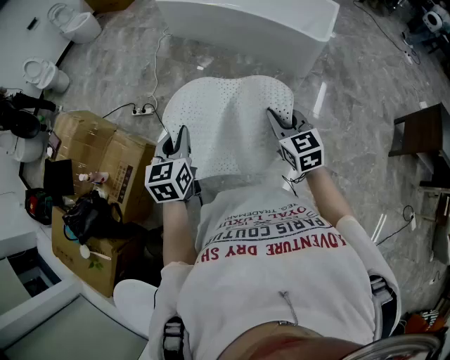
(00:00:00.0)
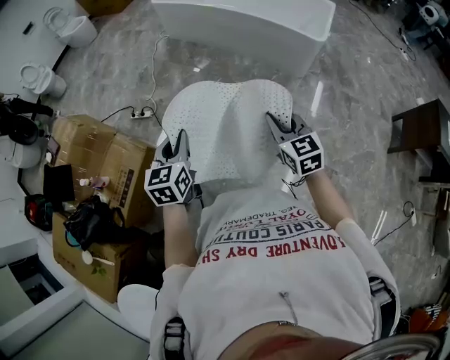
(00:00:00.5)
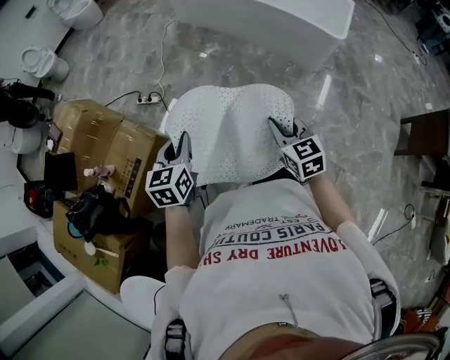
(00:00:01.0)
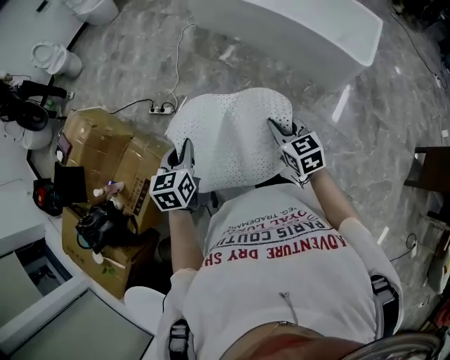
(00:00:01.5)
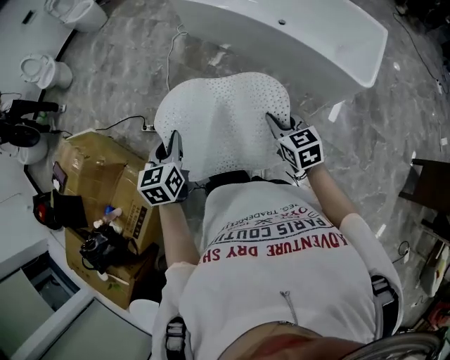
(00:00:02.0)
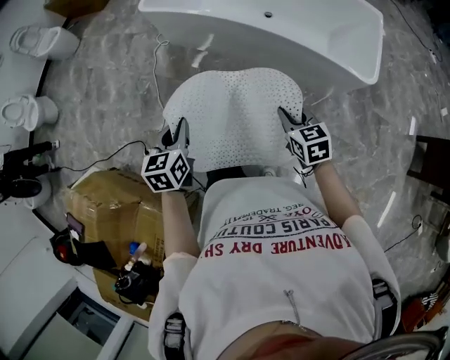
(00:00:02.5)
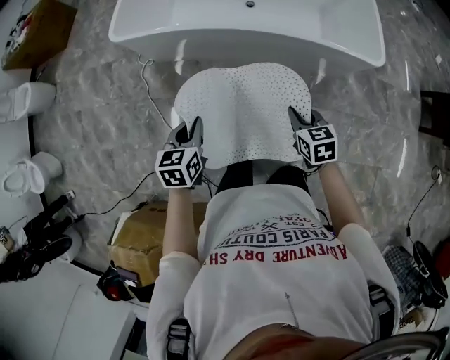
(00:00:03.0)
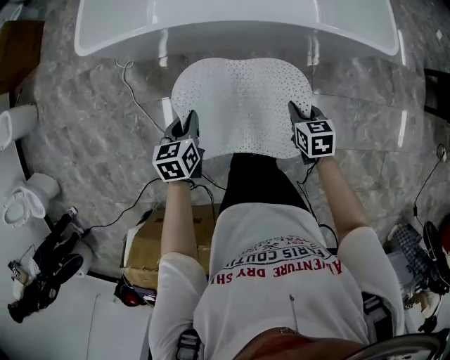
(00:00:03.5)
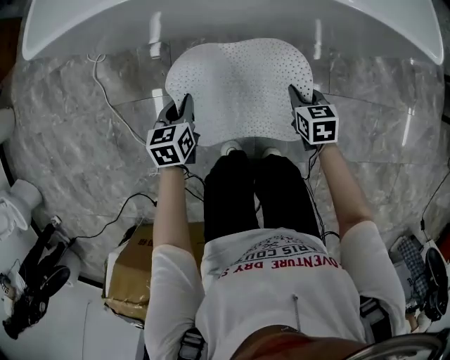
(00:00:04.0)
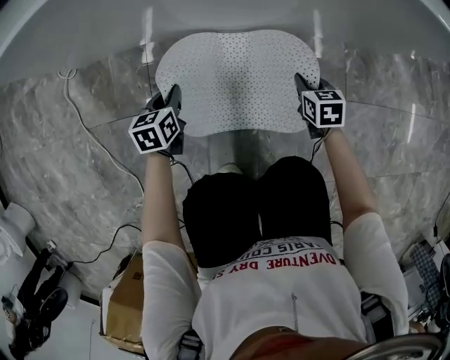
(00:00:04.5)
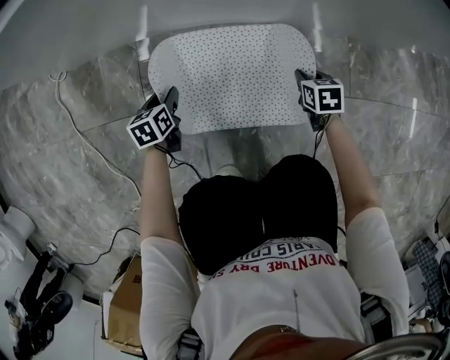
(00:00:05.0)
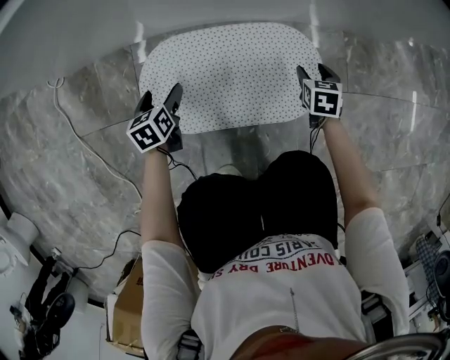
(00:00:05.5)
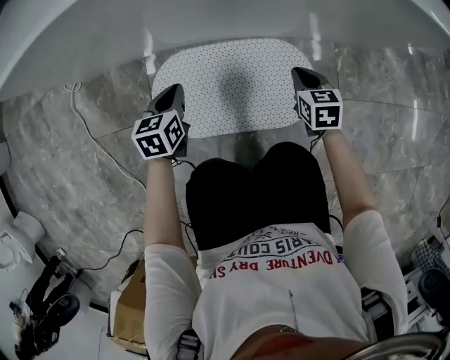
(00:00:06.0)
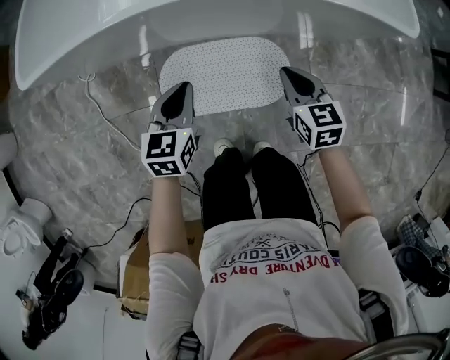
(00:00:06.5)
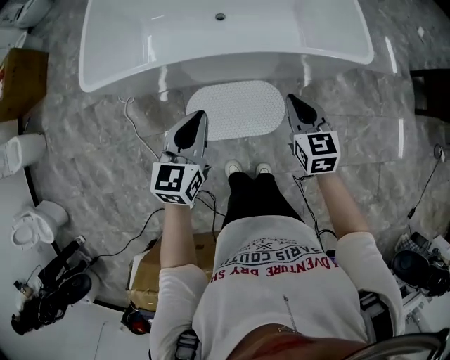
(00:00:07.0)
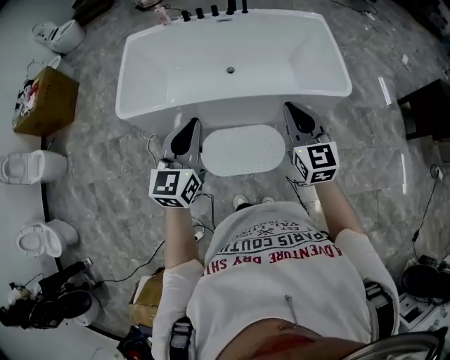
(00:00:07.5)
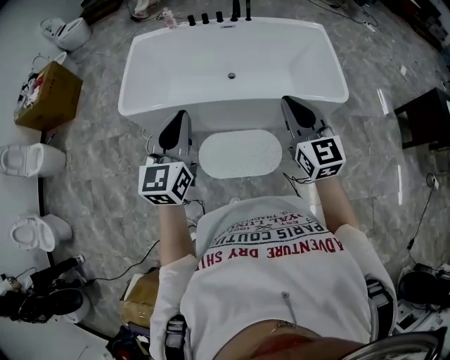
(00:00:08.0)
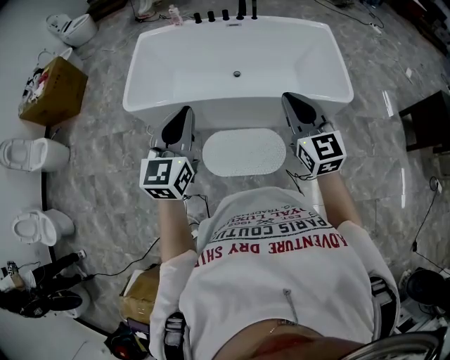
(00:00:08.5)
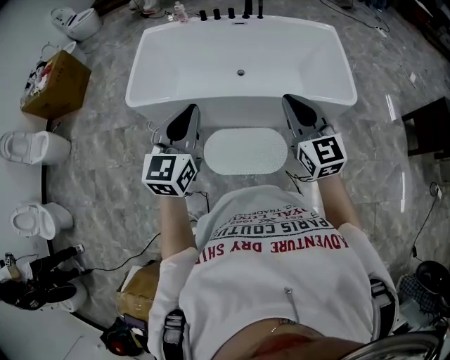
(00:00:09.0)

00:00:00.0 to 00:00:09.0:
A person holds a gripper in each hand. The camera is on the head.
00:00:00.0 to 00:00:02.0: Both grippers move forward, roughly 35 cm.
00:00:02.0 to 00:00:04.5: Both grippers travel together downward, roughly 70 cm. The right gripper changes its angle by some 50 degrees, while the left gripper swivels some 40 degrees.
00:00:04.5 to 00:00:07.0: Both grippers travel together upward, some 60 cm. The right gripper rotates some 20 degrees, and opens, then closes once more, while the left gripper changes its angle by approximately 30 degrees, and opens, then closes again.
00:00:07.0 to 00:00:09.0: The grippers both shift upward by approximately 25 cm. The right gripper rotates roughly 30 degrees.

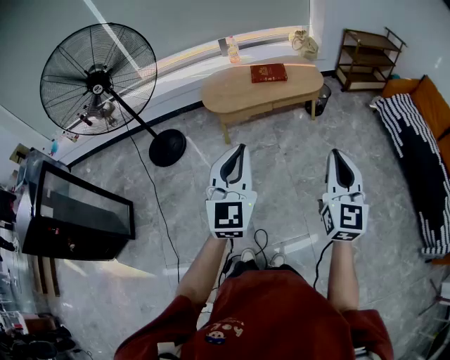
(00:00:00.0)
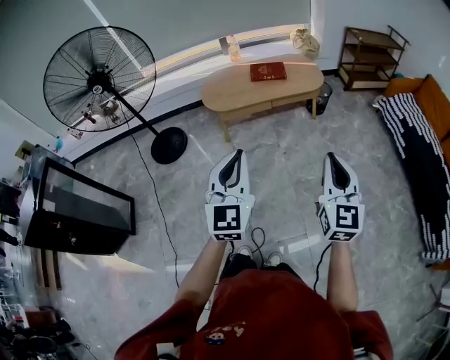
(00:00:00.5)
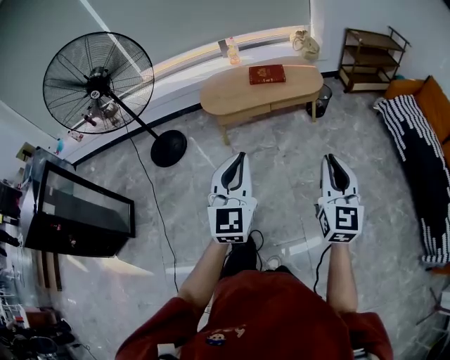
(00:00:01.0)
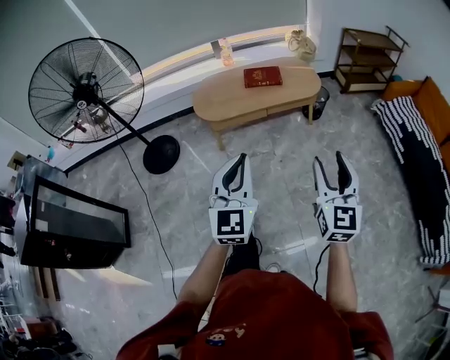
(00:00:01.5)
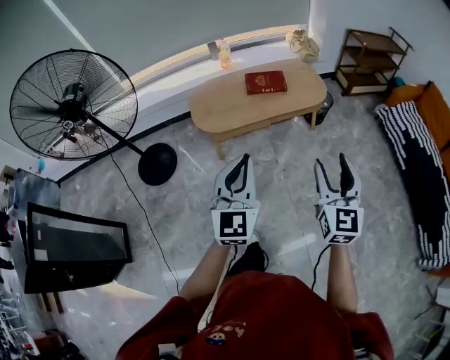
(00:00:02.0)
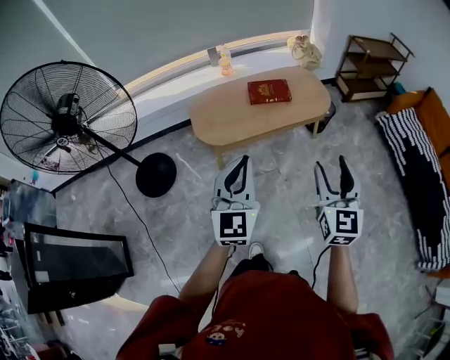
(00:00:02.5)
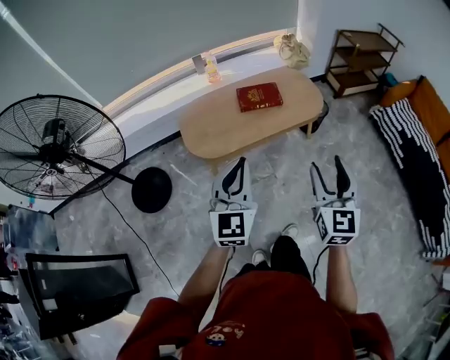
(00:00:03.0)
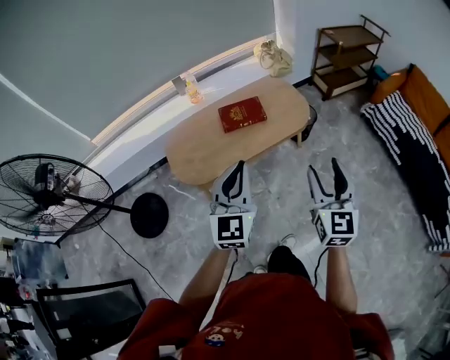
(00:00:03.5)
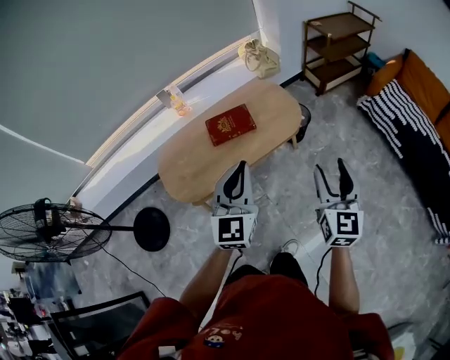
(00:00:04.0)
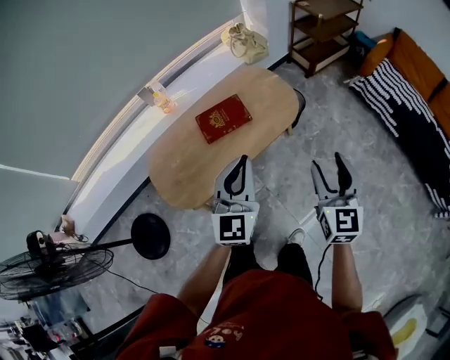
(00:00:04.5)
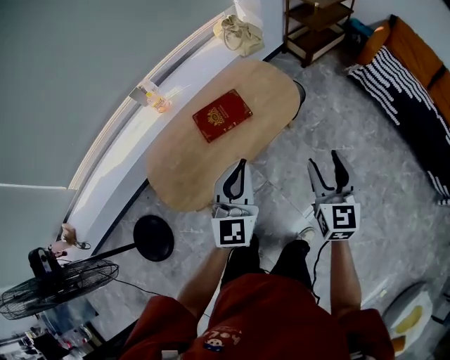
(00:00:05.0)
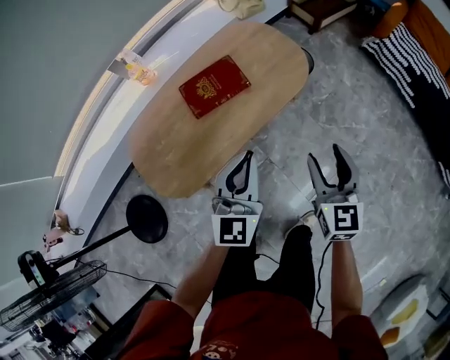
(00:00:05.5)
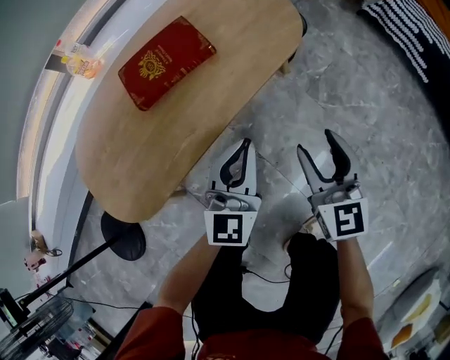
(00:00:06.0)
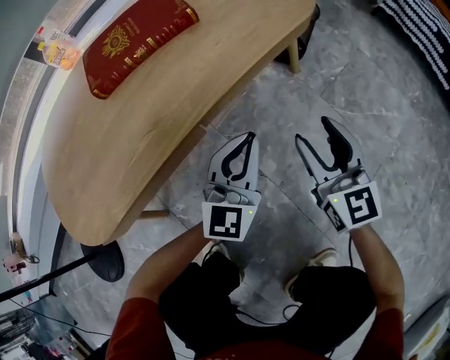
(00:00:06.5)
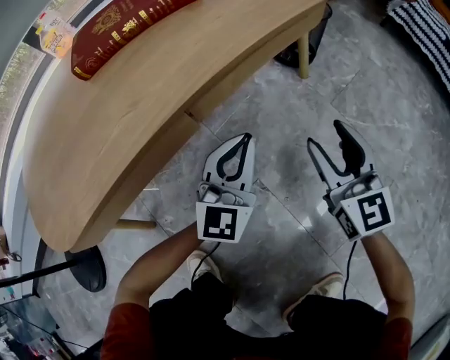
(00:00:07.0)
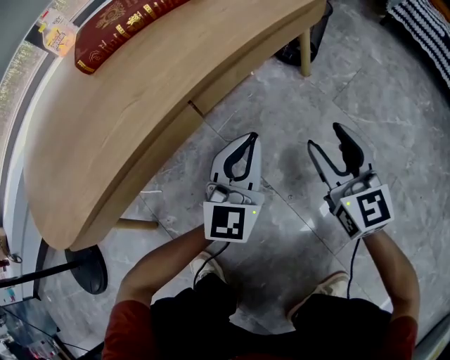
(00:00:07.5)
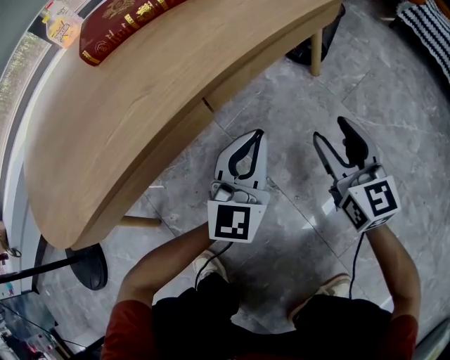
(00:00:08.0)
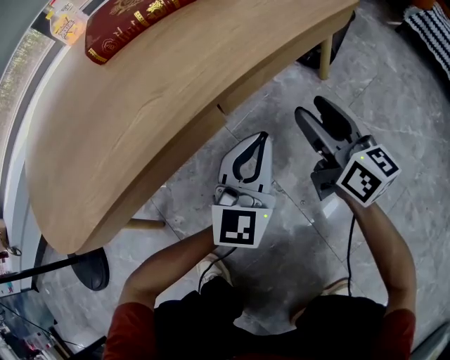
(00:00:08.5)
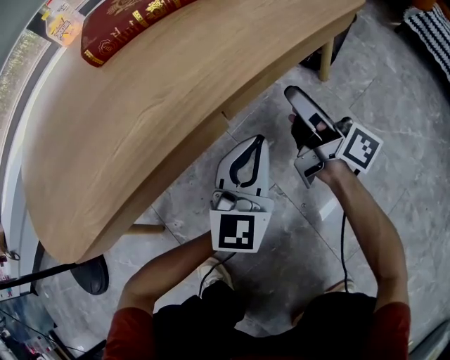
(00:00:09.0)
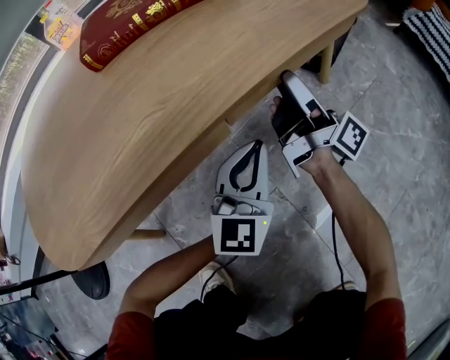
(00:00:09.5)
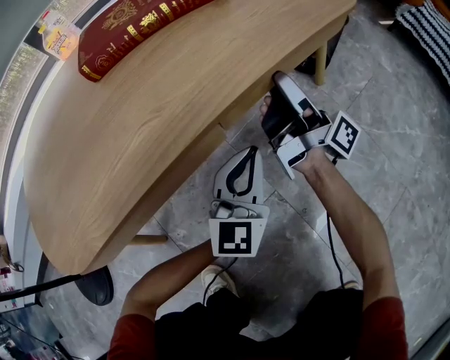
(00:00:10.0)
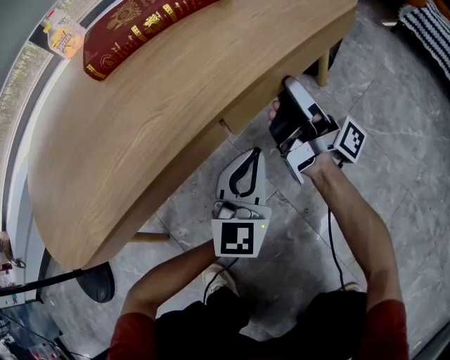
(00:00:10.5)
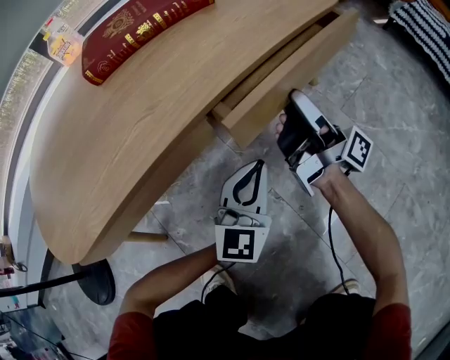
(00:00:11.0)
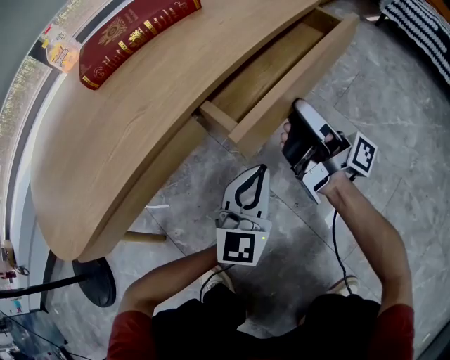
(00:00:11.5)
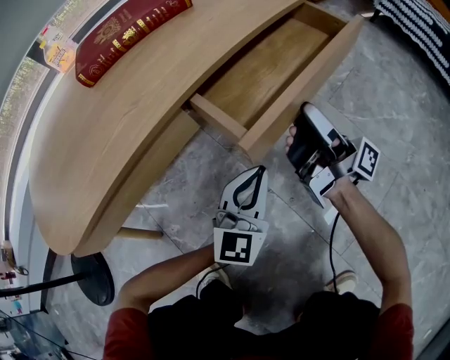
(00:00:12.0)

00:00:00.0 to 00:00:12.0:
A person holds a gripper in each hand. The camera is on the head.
00:00:00.0 to 00:00:02.0: Both grippers move forward, approximately 20 cm. The right gripper opens its fingers.
00:00:02.0 to 00:00:04.0: The two grippers go approximately 35 cm forward.
00:00:04.0 to 00:00:06.0: The two grippers go about 50 cm downward.
00:00:06.0 to 00:00:08.0: The grippers both shift downward by some 30 cm.
00:00:08.0 to 00:00:10.0: The right gripper heads forward and to the left, covering approximately 15 cm, and rolls clockwise, seen from behind, by some 70 degrees.
00:00:10.0 to 00:00:12.0: The grippers both shift backward and to the right by about 10 cm.

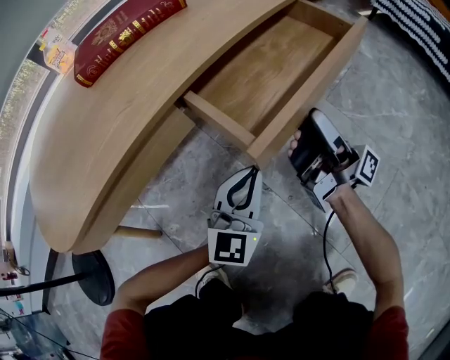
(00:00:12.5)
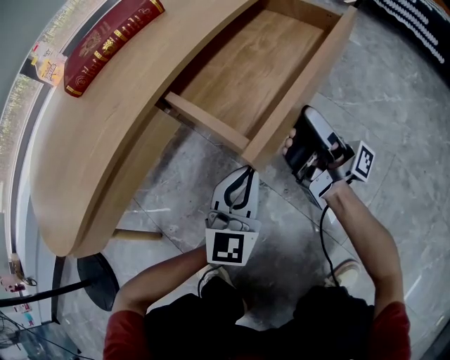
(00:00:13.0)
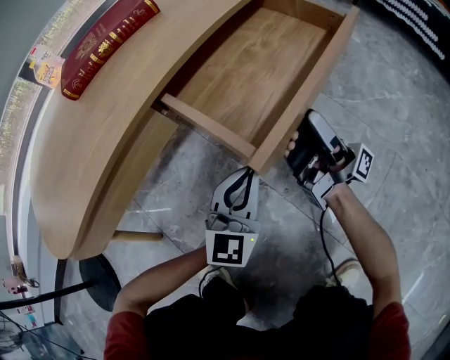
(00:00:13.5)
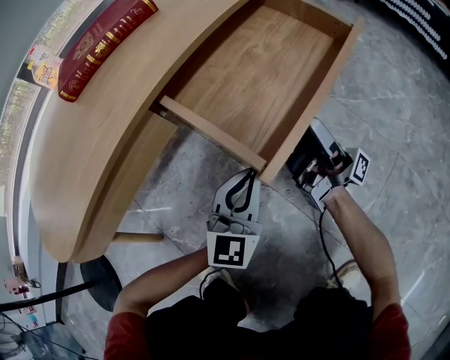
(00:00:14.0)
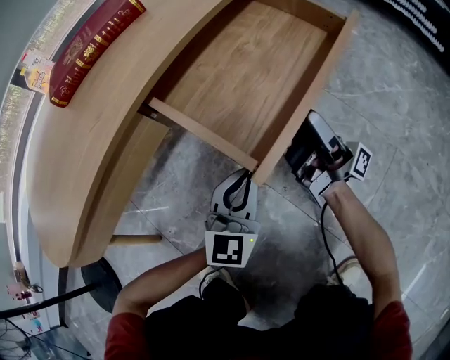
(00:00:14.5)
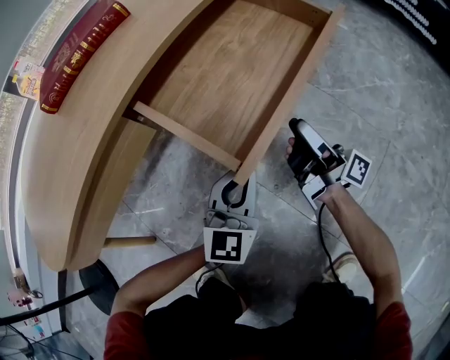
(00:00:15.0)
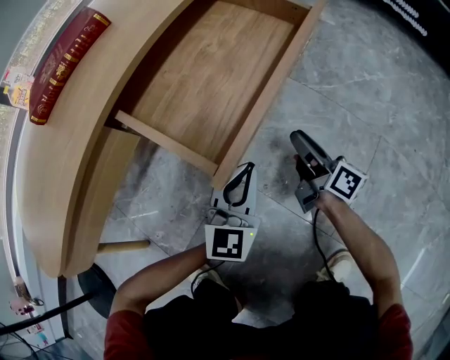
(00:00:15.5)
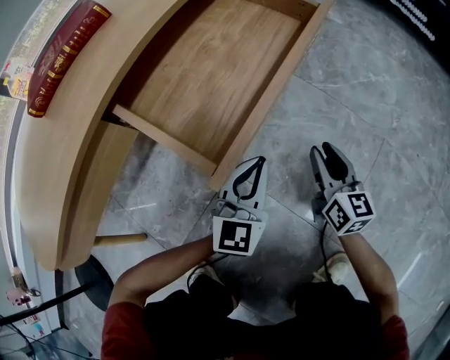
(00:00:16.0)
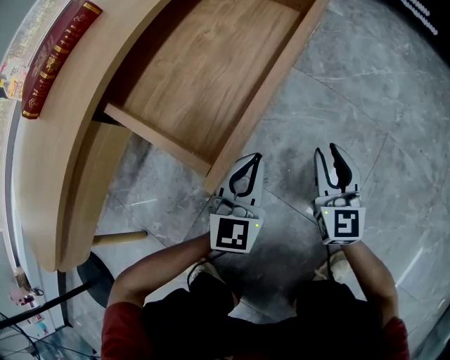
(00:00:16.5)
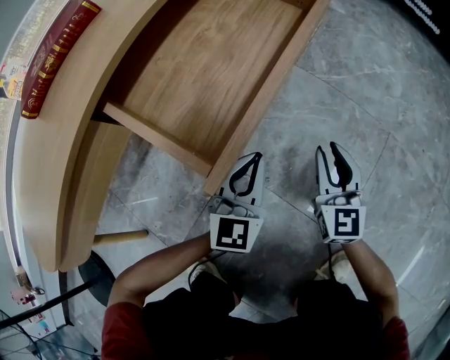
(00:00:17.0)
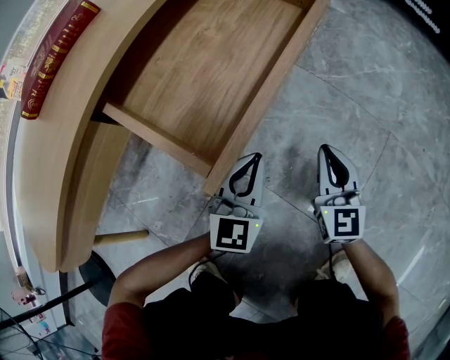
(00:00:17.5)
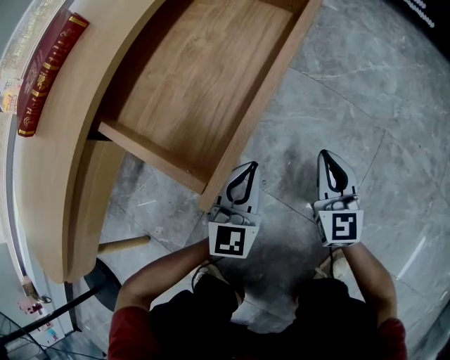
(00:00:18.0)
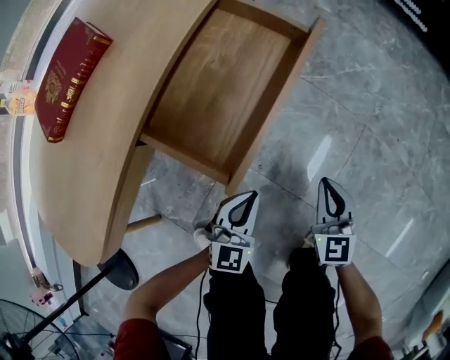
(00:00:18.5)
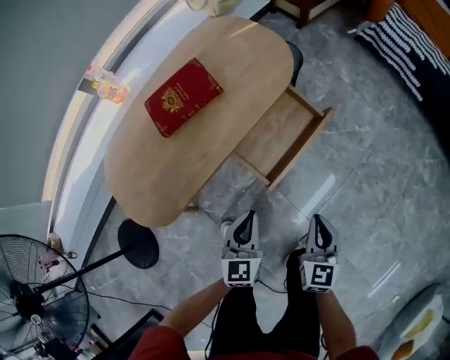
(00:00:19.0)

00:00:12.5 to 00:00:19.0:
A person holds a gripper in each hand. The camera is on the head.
00:00:12.5 to 00:00:14.5: The right gripper ends up about 5 cm from where it was.
00:00:14.5 to 00:00:17.0: The left gripper shifts roughly 5 cm to the right. Meanwhile the right gripper travels downward, to the right and backward by approximately 15 cm, and rotates around the line of its fingers by roughly 90 degrees, counterclockwise from behind.
00:00:17.0 to 00:00:19.0: Both grippers travel together upward, approximately 40 cm. The right gripper closes. Meanwhile the left gripper swivels some 30 degrees.
